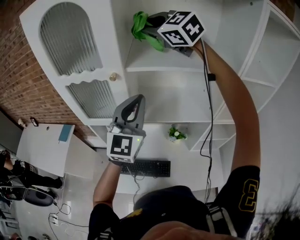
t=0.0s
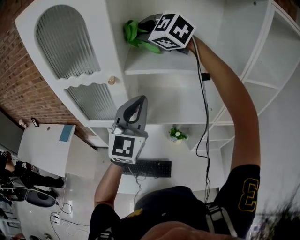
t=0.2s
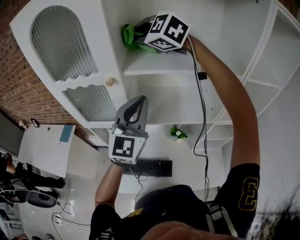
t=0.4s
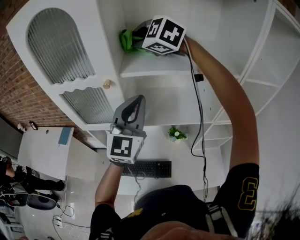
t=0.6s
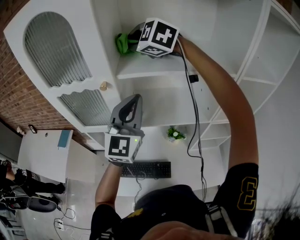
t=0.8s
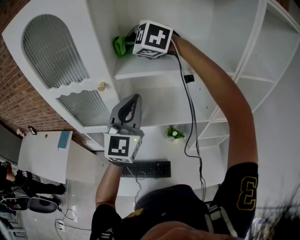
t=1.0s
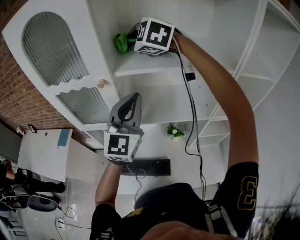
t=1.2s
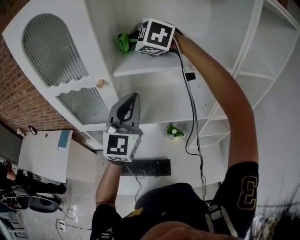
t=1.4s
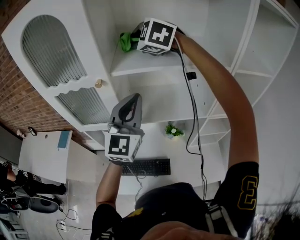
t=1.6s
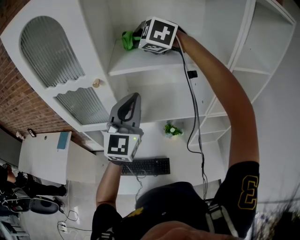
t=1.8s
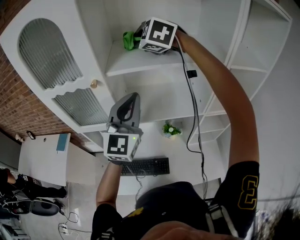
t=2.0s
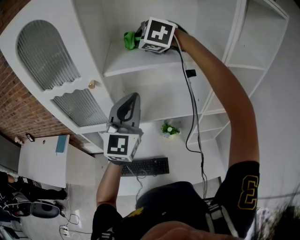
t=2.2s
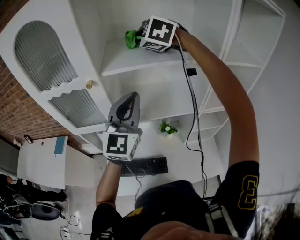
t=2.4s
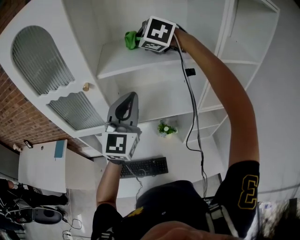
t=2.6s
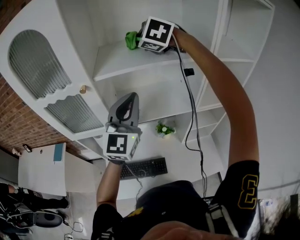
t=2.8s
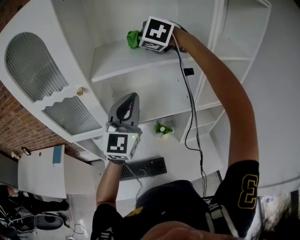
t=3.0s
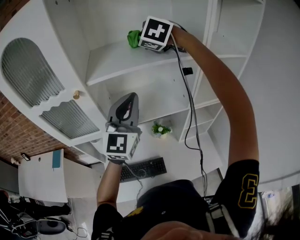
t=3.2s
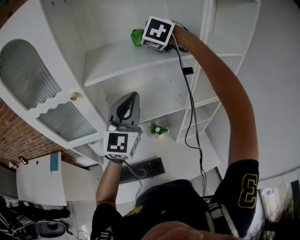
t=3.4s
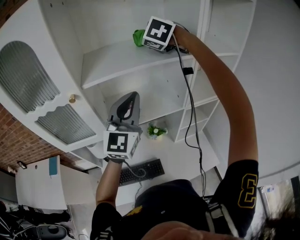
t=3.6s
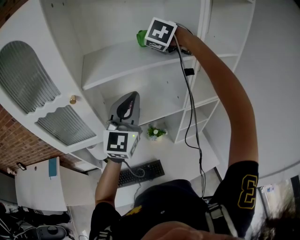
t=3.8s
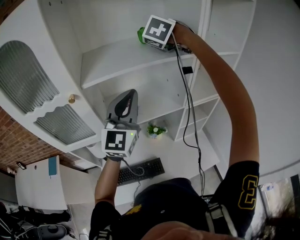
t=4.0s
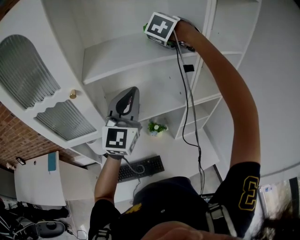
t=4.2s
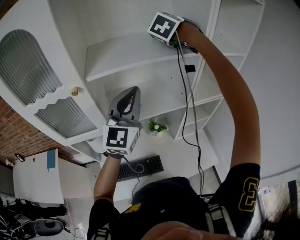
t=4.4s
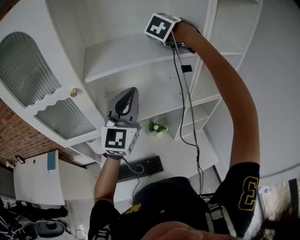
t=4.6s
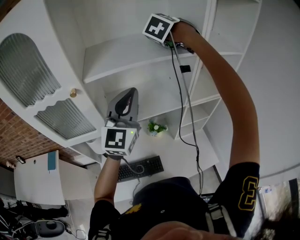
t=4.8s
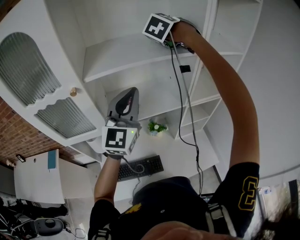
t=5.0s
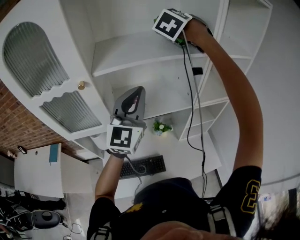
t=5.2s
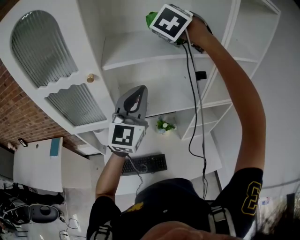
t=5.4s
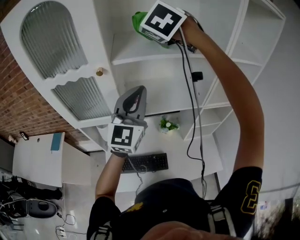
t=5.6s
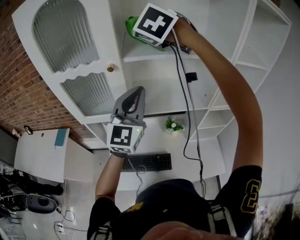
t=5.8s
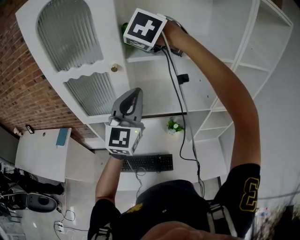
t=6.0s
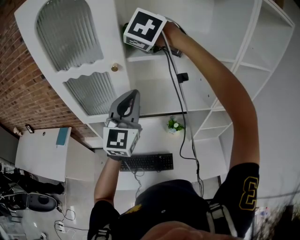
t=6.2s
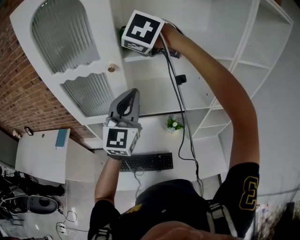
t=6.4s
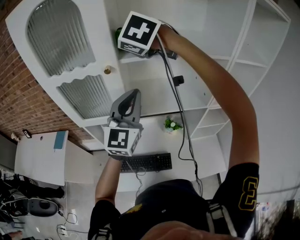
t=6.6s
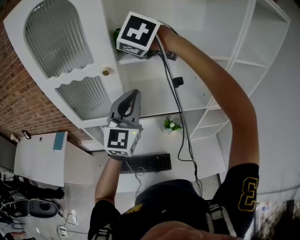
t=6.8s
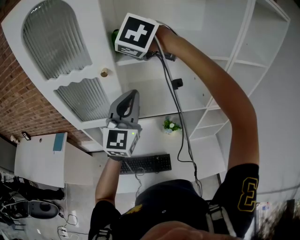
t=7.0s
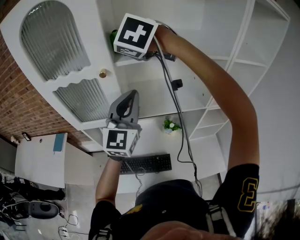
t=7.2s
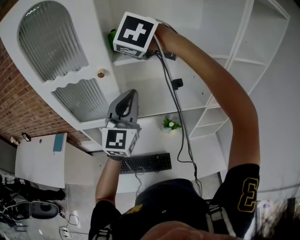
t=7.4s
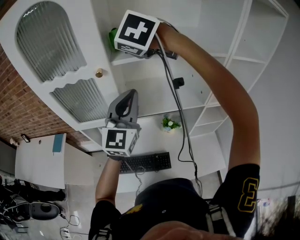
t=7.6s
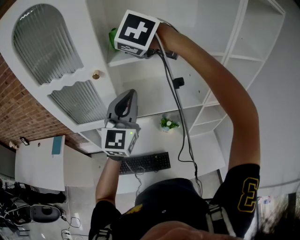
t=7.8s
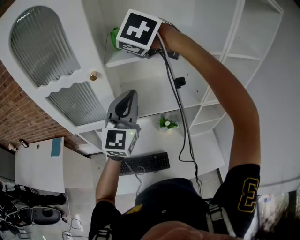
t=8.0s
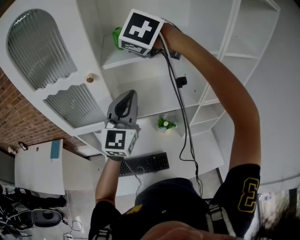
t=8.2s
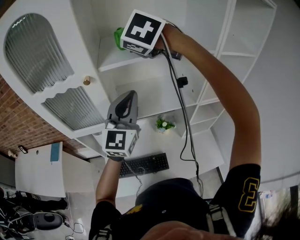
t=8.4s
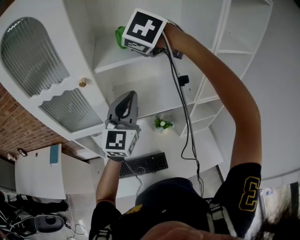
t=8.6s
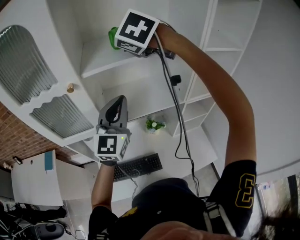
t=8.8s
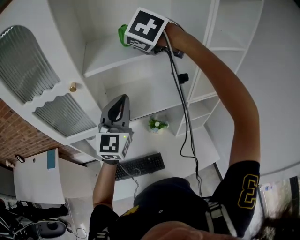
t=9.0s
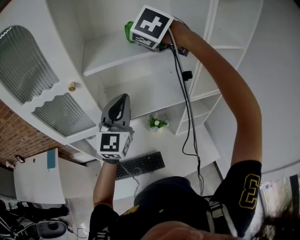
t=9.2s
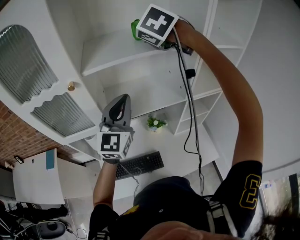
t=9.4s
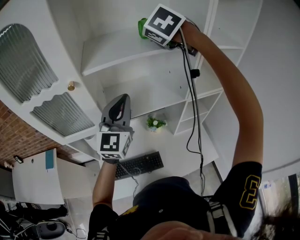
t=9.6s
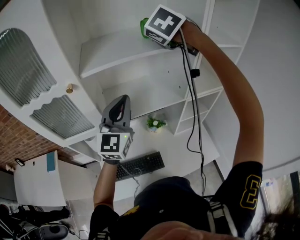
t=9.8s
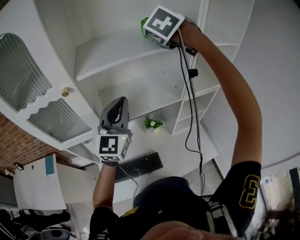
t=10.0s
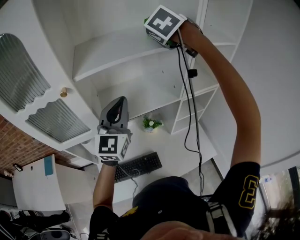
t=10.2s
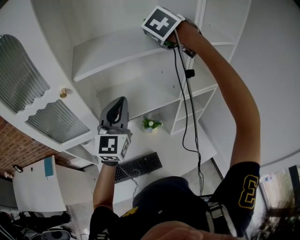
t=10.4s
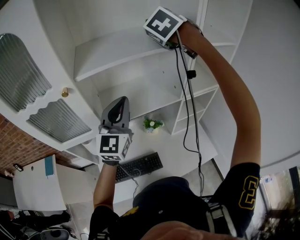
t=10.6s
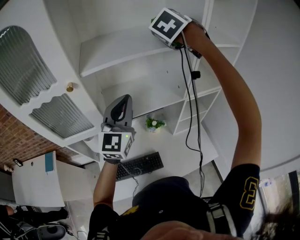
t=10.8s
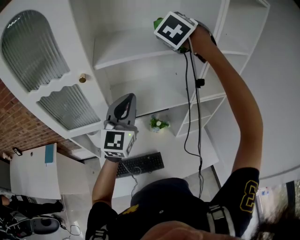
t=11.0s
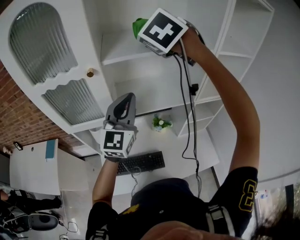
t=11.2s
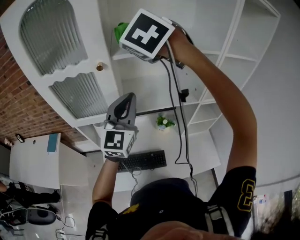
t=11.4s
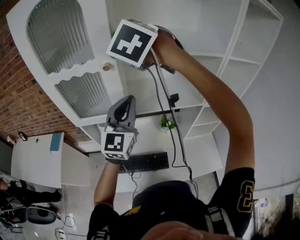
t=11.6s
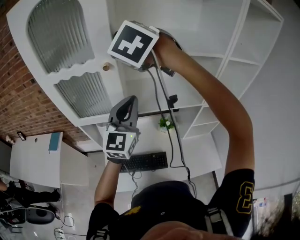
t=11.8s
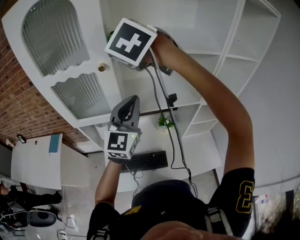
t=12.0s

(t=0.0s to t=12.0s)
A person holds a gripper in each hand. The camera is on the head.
t=0.0s - t=1.6s: The right gripper goes about 10 cm downward, and turns by some 30 degrees.
t=1.6s - t=3.0s: The left gripper shifts some 5 cm to the right, while the right gripper heads to the right, covering approximately 10 cm, and swivels some 20 degrees.
t=3.0s - t=4.4s: The right gripper goes some 10 cm to the right and forward, and turns by some 30 degrees.
t=4.4s - t=6.0s: The right gripper shifts by some 30 cm, and swivels some 30 degrees. Meanwhile the left gripper moves about 10 cm.
t=6.0s - t=7.6s: The grippers move only a little.
t=7.6s - t=9.0s: The right gripper shifts about 15 cm to the right. The left gripper ends up about 5 cm from where it was.
t=9.0s - t=10.4s: The right gripper is displaced to the right and forward by some 15 cm, and swivels about 20 degrees.
t=10.4s - t=12.0s: The right gripper moves to the left and backward, roughly 30 cm, and swivels approximately 30 degrees. The left gripper heads to the left and backward, covering roughly 10 cm.

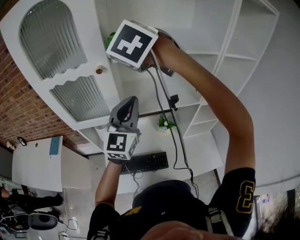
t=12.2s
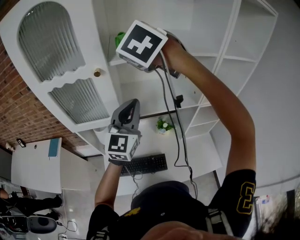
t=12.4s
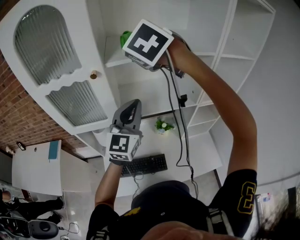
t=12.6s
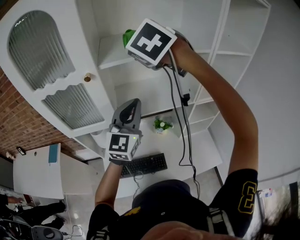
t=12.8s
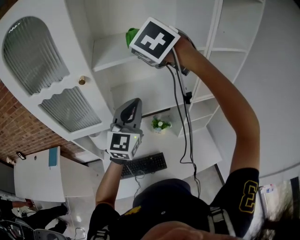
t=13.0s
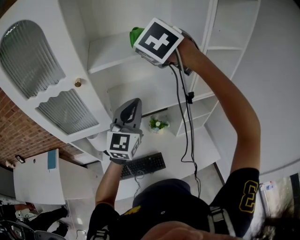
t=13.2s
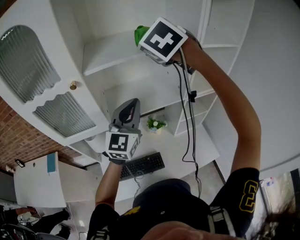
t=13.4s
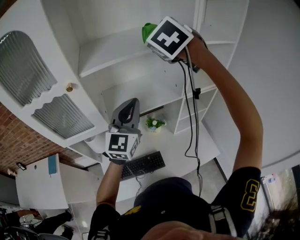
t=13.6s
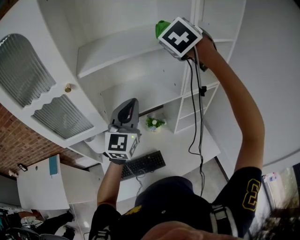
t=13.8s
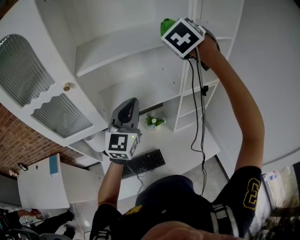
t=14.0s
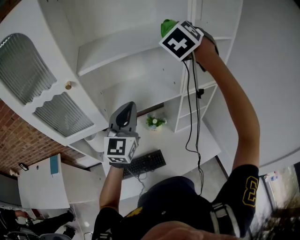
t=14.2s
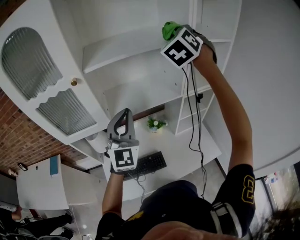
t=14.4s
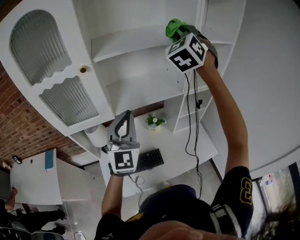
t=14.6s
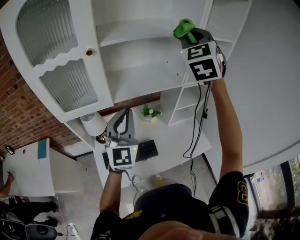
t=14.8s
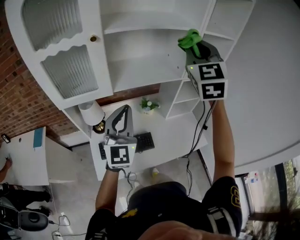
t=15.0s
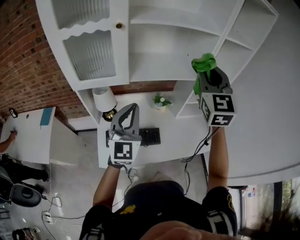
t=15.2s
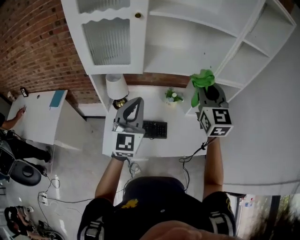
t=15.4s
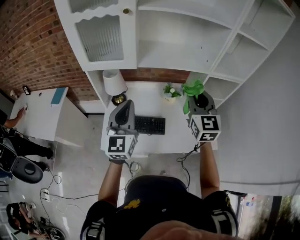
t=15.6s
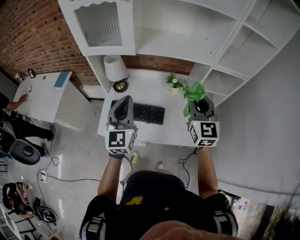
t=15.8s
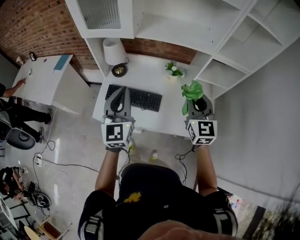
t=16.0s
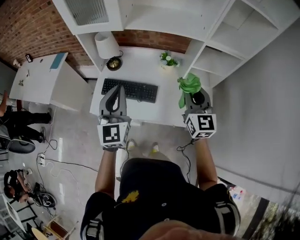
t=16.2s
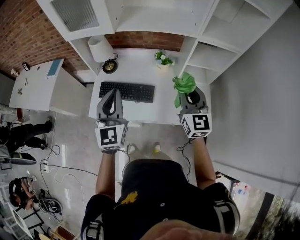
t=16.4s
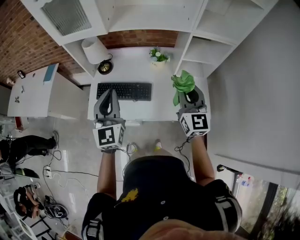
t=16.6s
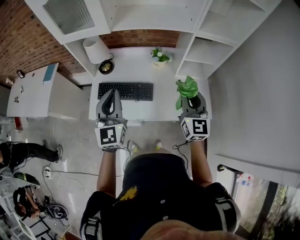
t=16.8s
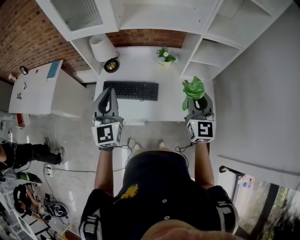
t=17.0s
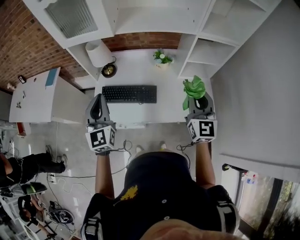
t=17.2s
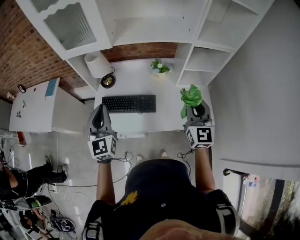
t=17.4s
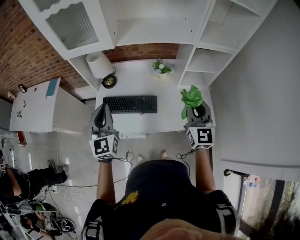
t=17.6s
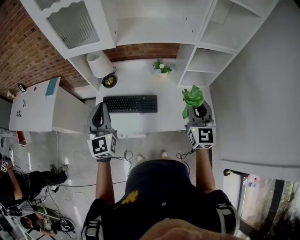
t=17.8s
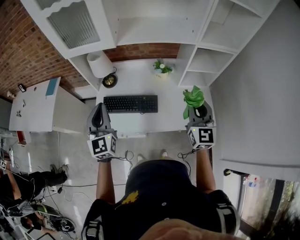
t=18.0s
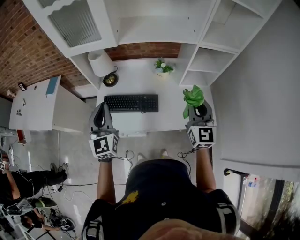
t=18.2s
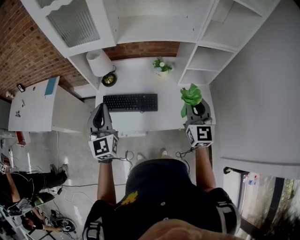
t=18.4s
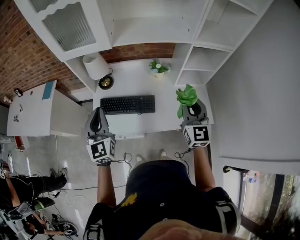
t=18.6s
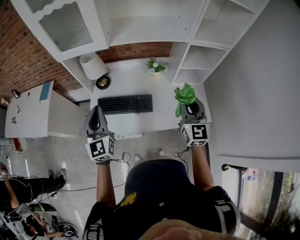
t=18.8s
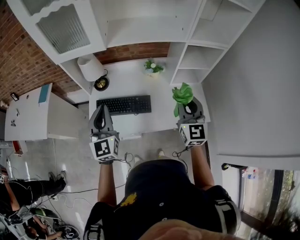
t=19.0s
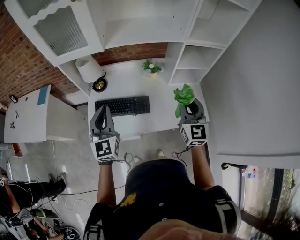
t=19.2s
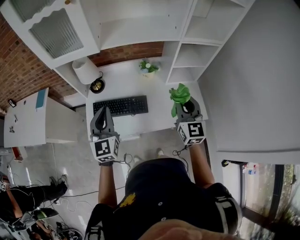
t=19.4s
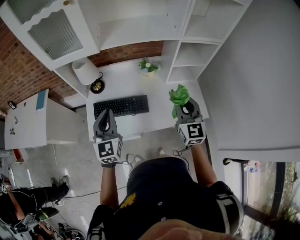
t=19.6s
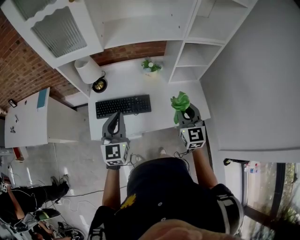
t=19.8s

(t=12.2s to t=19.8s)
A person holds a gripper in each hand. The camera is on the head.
t=12.2s - t=13.8s: The right gripper is displaced to the right by some 25 cm, and rotates about 30 degrees. Meanwhile the left gripper is displaced to the right by about 10 cm.
t=13.8s - t=15.2s: The right gripper is displaced backward and downward by roughly 25 cm, and swivels approximately 30 degrees; the left gripper travels backward by approximately 20 cm.
t=15.2s - t=16.8s: The left gripper goes approximately 20 cm backward, downward and to the right, and changes its angle by roughly 20 degrees; the right gripper is displaced downward, backward and to the right by roughly 35 cm, and rotates some 30 degrees.
t=16.8s - t=18.2s: The left gripper moves to the left, roughly 10 cm.
t=18.2s - t=19.8s: The left gripper shifts roughly 10 cm to the right and downward; the right gripper heads downward, covering some 5 cm.

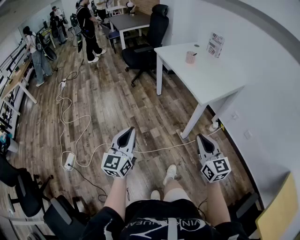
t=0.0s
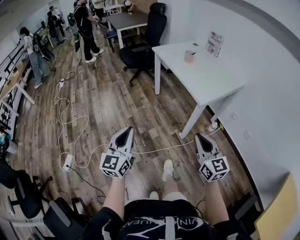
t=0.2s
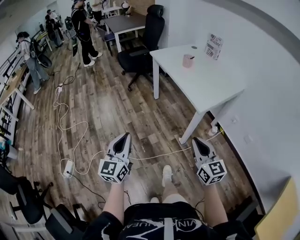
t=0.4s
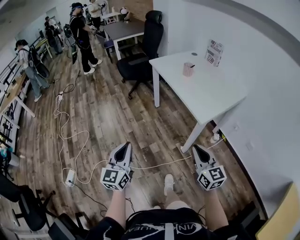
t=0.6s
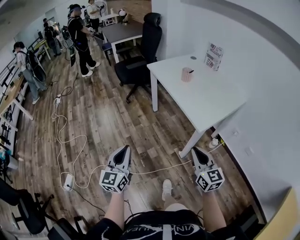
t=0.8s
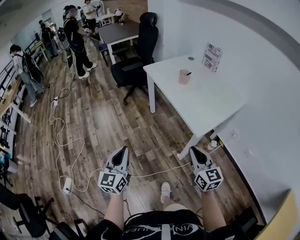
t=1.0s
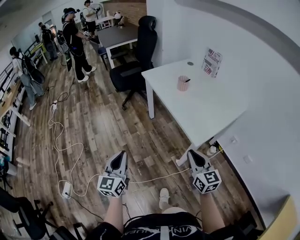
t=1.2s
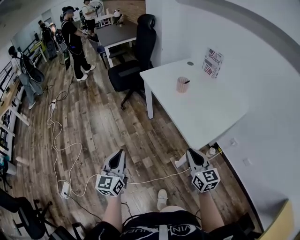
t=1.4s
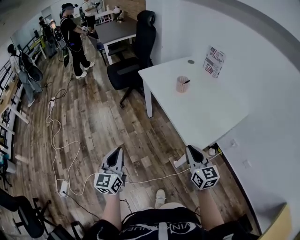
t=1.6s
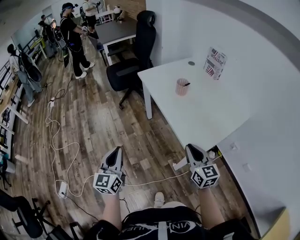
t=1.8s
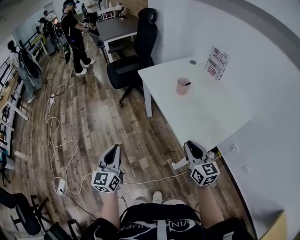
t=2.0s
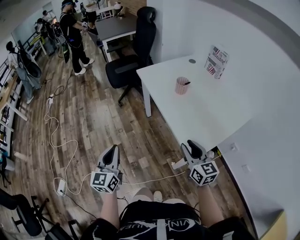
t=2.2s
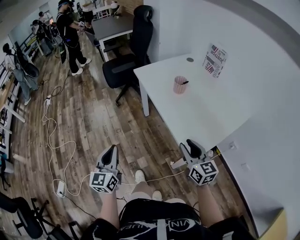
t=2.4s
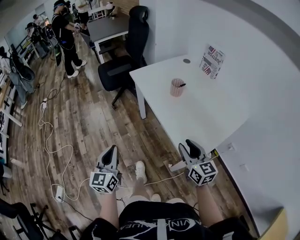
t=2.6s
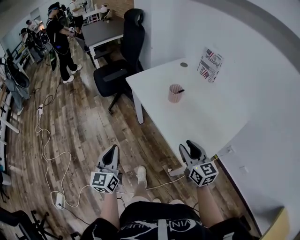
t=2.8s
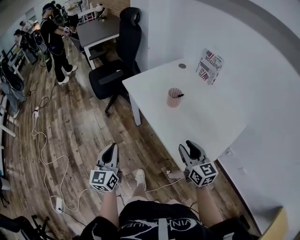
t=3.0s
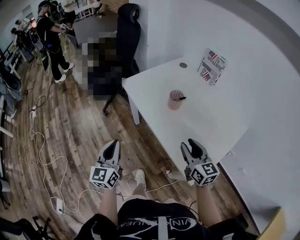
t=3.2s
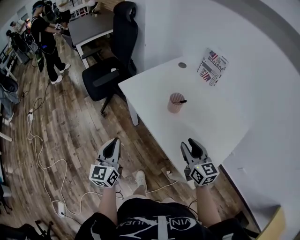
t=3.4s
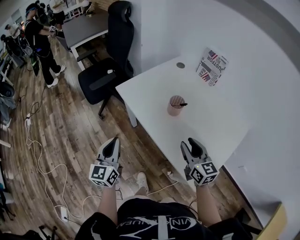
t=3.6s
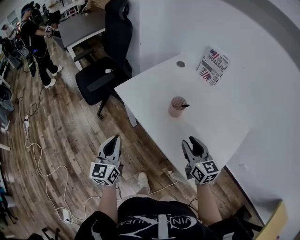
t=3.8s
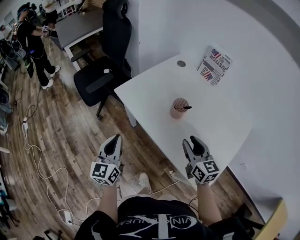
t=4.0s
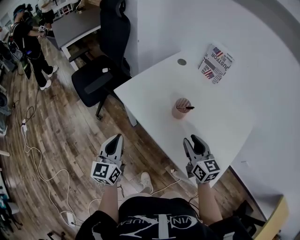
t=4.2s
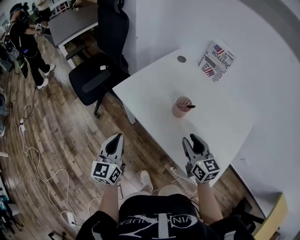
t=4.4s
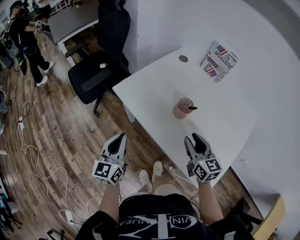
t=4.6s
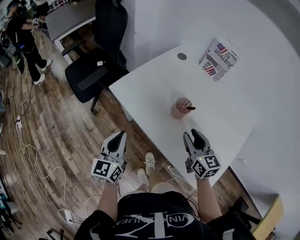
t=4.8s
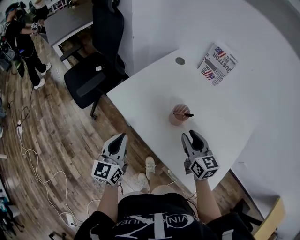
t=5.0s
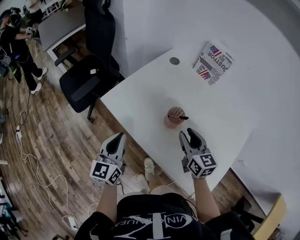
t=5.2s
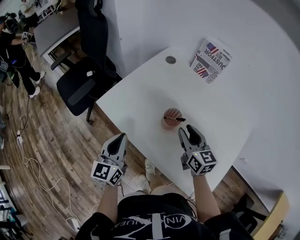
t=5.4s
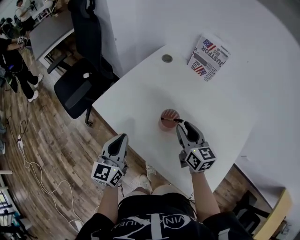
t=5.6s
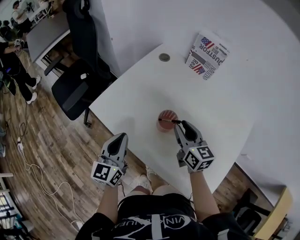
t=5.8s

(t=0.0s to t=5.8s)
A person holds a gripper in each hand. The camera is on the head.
t=0.0s - t=1.4s: Both grippers move forward, some 30 cm.
t=1.4s - t=2.8s: The two grippers go approximately 20 cm forward. The right gripper opens its fingers.
t=2.8s - t=4.4s: The two grippers go roughly 25 cm forward.
t=4.4s - t=5.8s: The left gripper shifts approximately 15 cm forward and to the right. Meanwhile the right gripper heads forward, covering some 15 cm.
